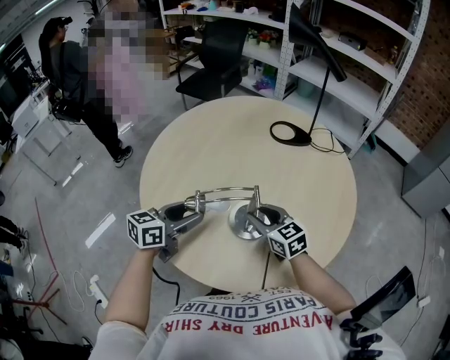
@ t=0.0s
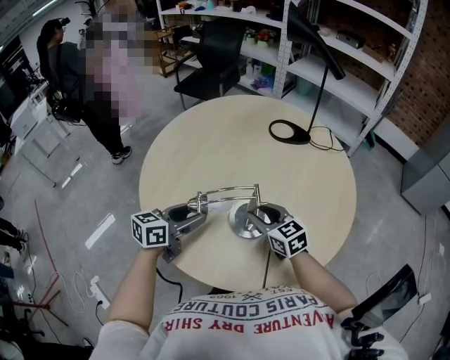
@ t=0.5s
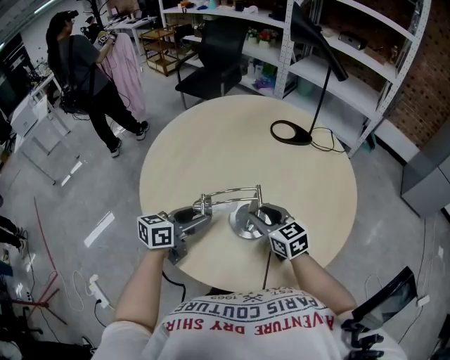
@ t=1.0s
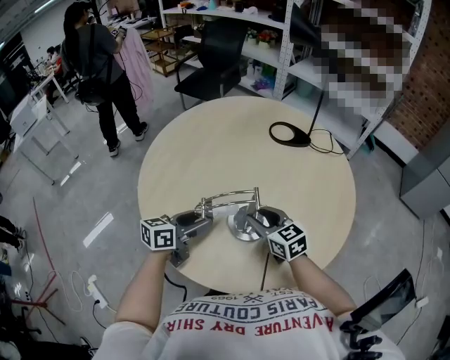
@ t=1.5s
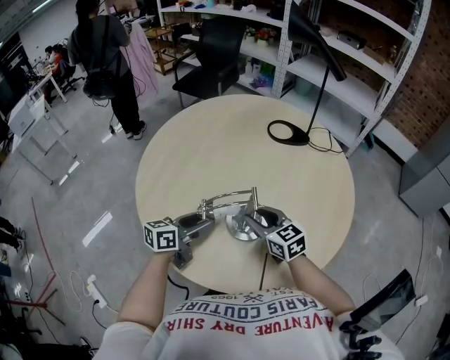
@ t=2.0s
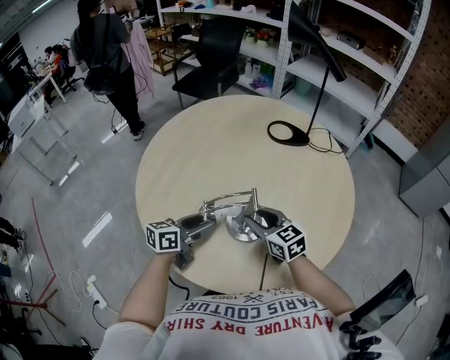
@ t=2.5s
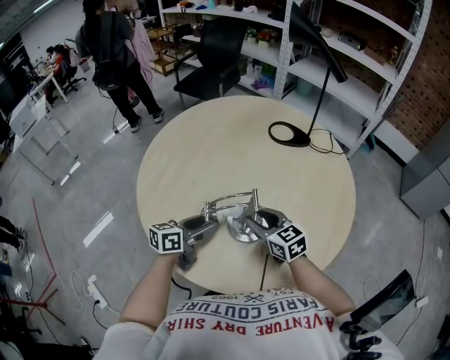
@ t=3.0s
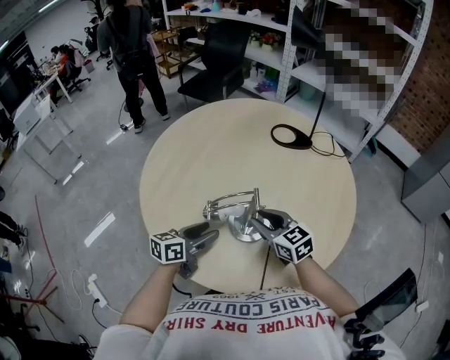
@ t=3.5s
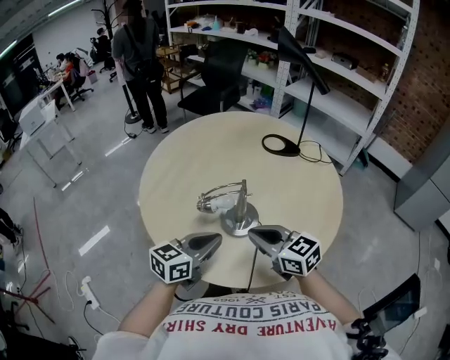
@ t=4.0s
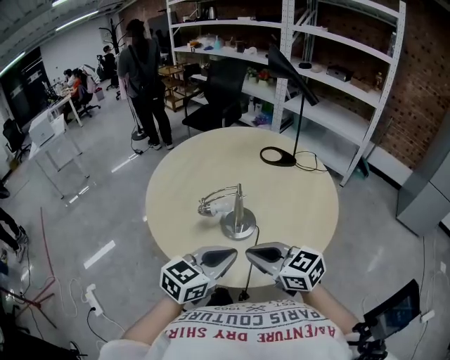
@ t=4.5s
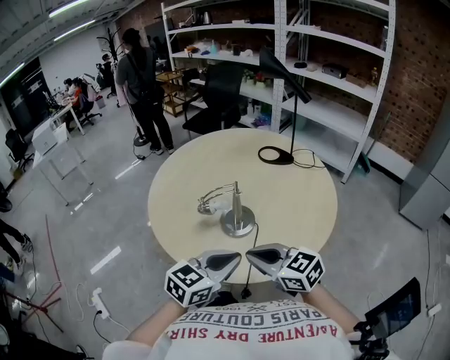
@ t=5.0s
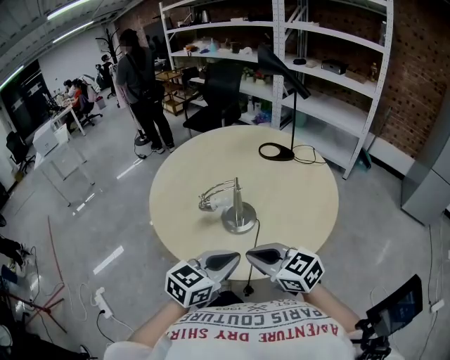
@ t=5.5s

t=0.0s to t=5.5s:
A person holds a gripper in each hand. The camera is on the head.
t=0.0s to t=2.0s: The left gripper is displaced downward by some 5 cm.
t=2.0s to t=3.5s: The grippers stay close to where they were, moving slightly.
t=3.5s to t=5.5s: The right gripper is displaced backward and upward by roughly 25 cm, and closes; the left gripper goes approximately 25 cm backward, upward and to the right, changes its angle by about 30 degrees, and closes up.

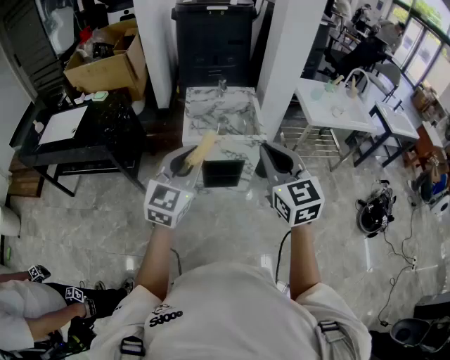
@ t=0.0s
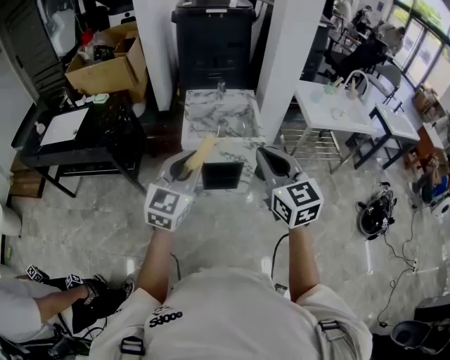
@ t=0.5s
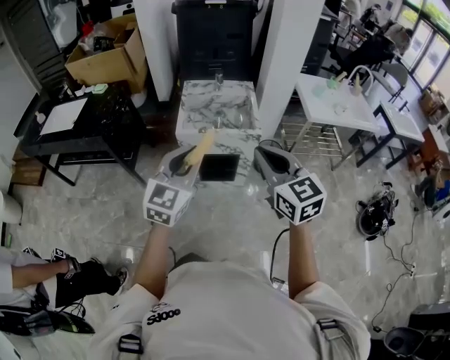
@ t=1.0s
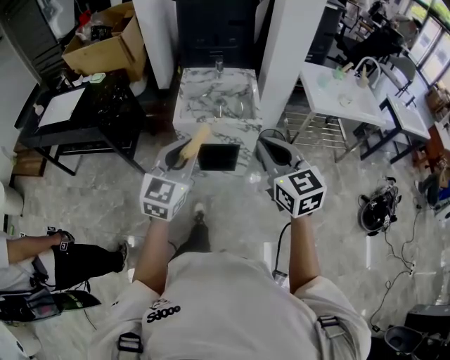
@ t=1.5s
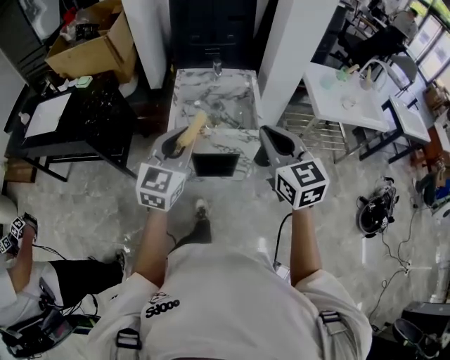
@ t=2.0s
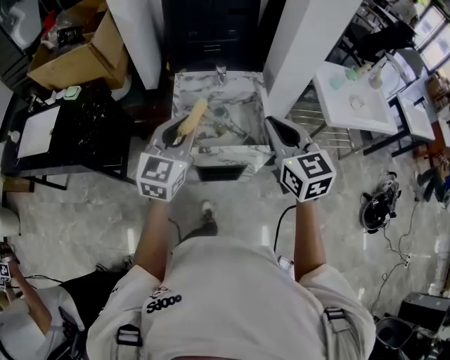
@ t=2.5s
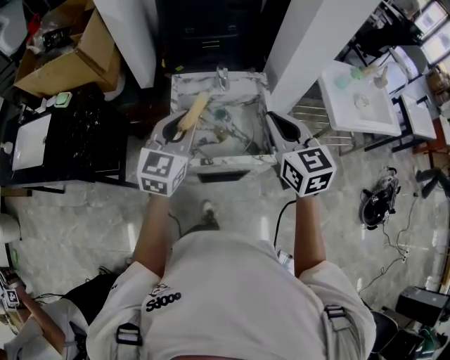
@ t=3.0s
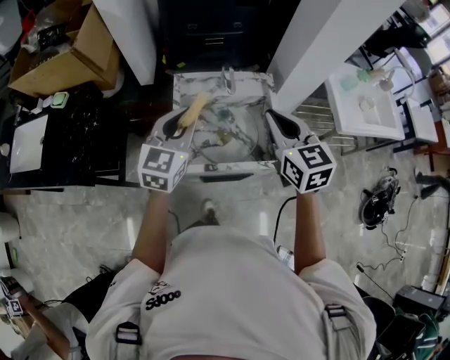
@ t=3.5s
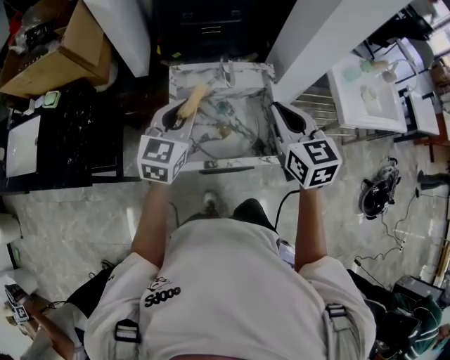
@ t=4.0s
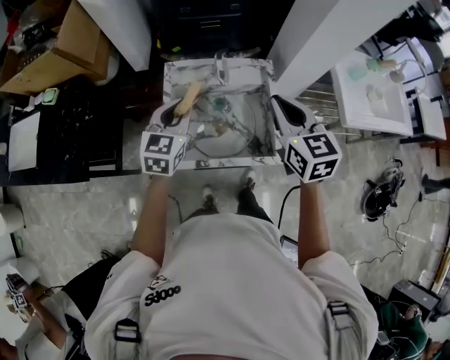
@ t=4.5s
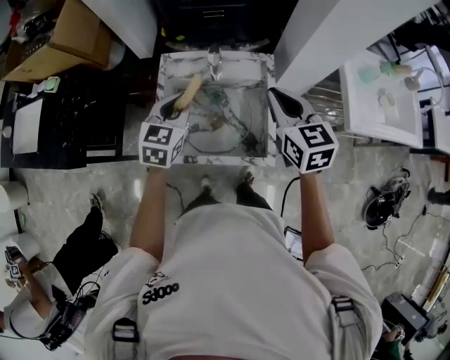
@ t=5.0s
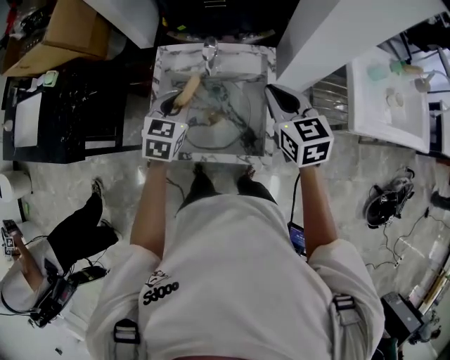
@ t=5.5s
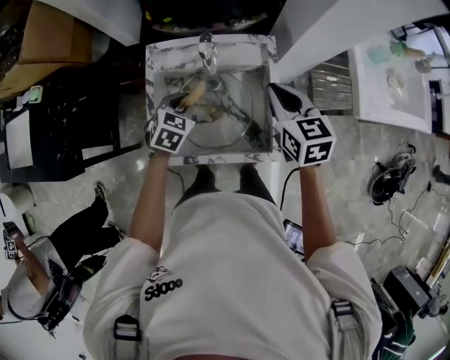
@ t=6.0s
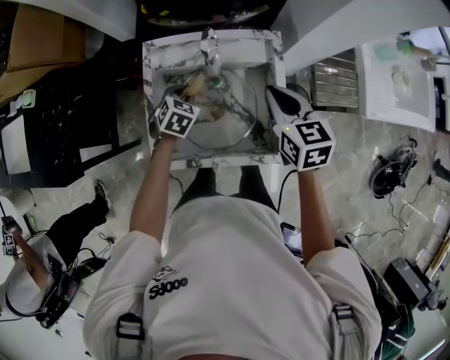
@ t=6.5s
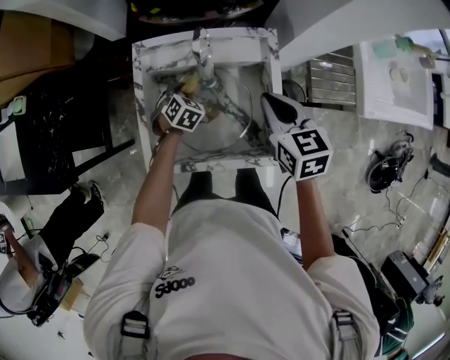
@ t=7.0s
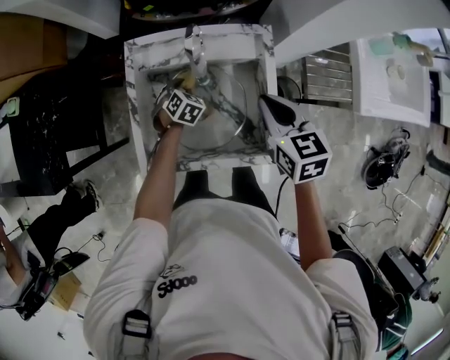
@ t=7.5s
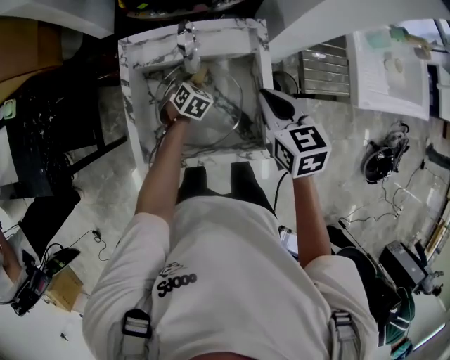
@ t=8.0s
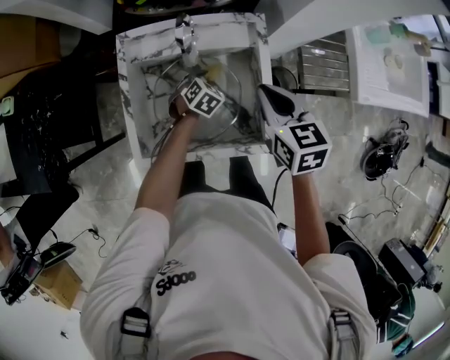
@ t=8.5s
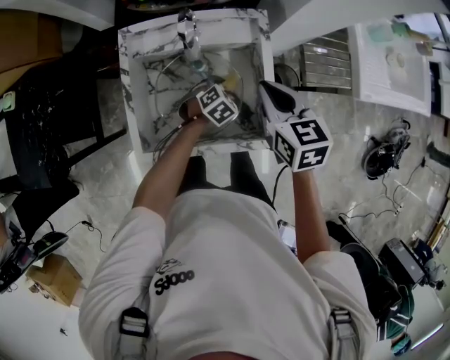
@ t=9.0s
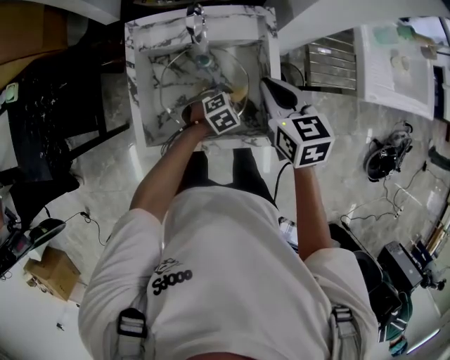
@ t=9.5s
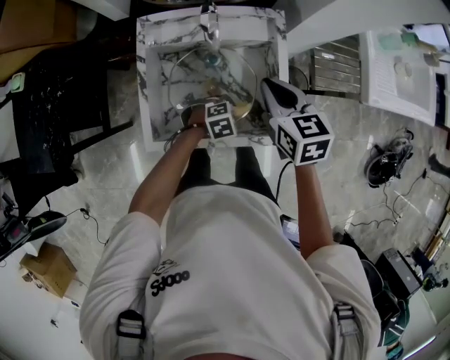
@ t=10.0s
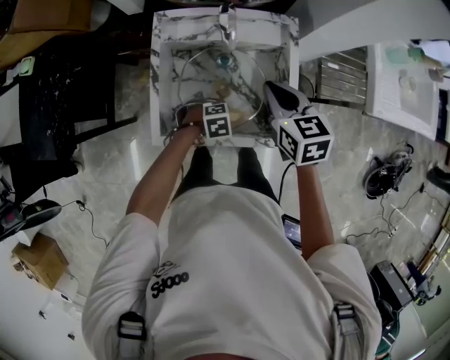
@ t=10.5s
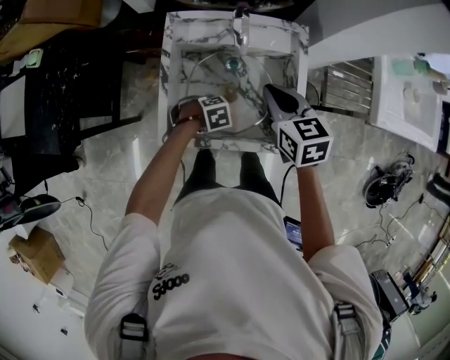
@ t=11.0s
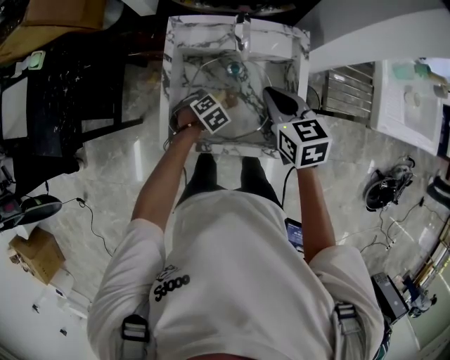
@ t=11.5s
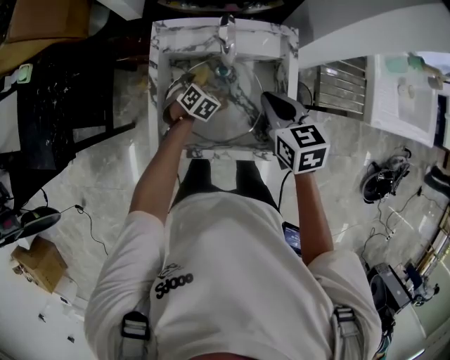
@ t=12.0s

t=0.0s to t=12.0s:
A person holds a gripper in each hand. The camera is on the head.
t=0.0s to t=2.0s: The two grippers go approximately 15 cm forward.
t=2.0s to t=4.0s: Both grippers move forward, some 30 cm.
t=4.0s to t=6.0s: The left gripper goes approximately 20 cm downward, and tilts its fingers some 40 degrees downward, while the right gripper moves downward, forward and to the right, approximately 20 cm.
t=6.0s to t=8.0s: The left gripper travels downward by about 15 cm. Meanwhile the right gripper shifts by about 5 cm.
t=8.0s to t=10.0s: The left gripper shifts by about 20 cm, and rotates some 40 degrees.
t=10.0s to t=12.0s: The left gripper shifts by some 25 cm, and changes its angle by approximately 50 degrees.

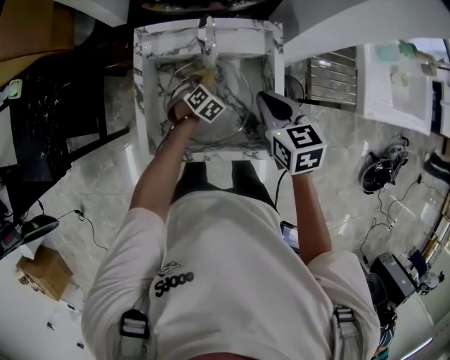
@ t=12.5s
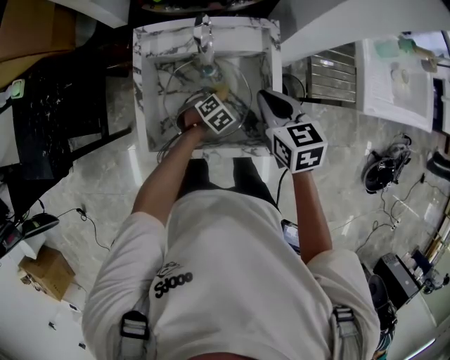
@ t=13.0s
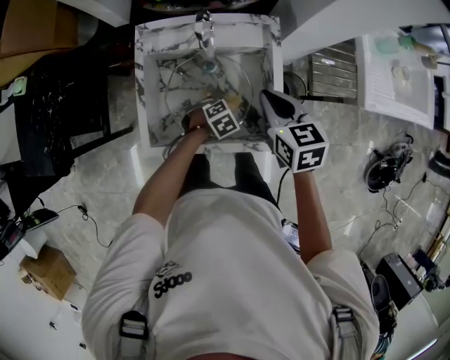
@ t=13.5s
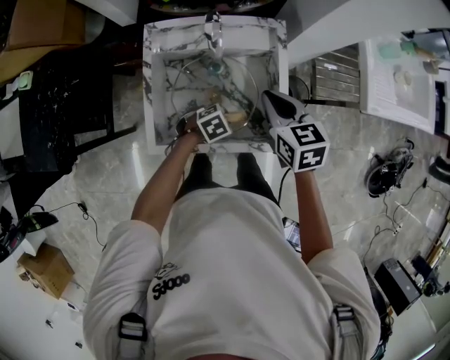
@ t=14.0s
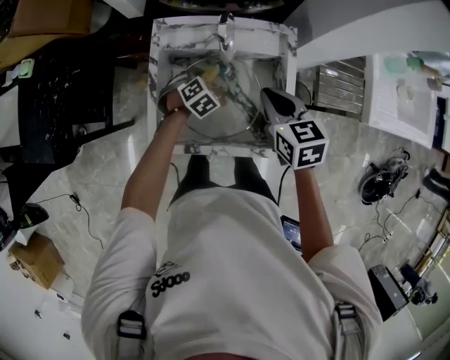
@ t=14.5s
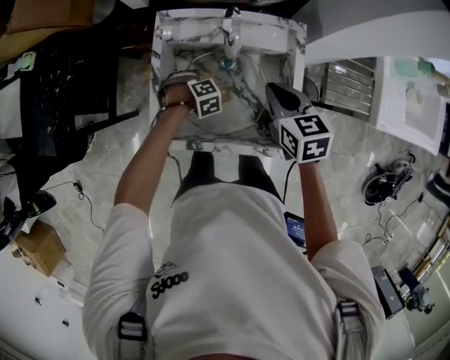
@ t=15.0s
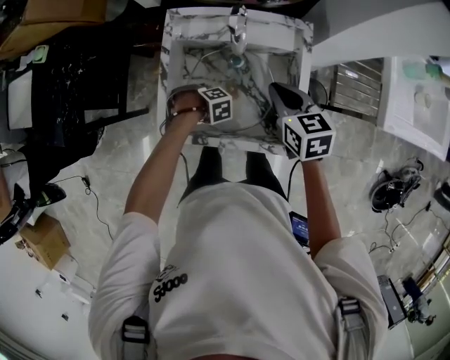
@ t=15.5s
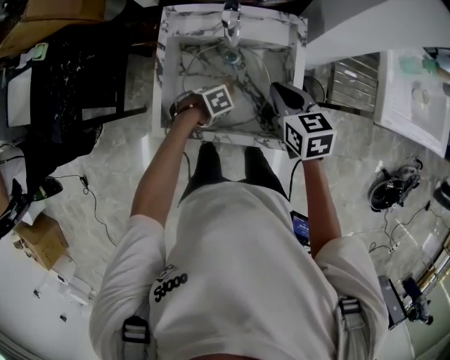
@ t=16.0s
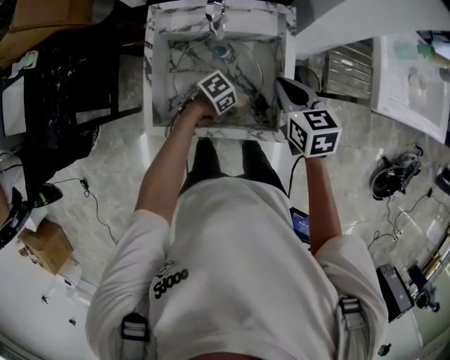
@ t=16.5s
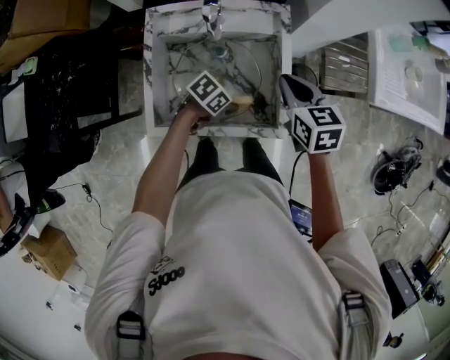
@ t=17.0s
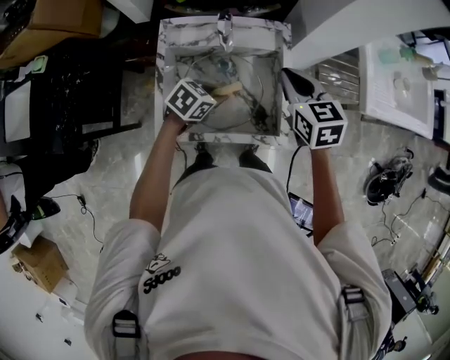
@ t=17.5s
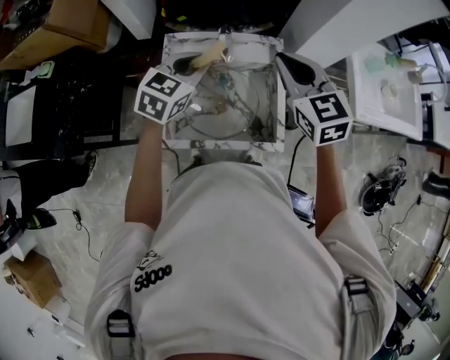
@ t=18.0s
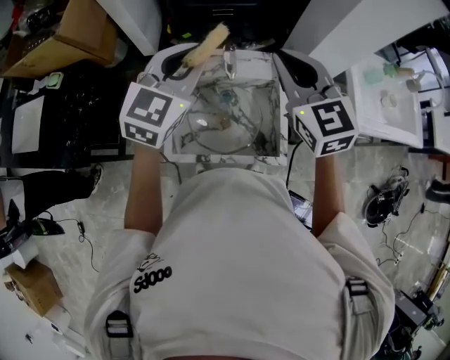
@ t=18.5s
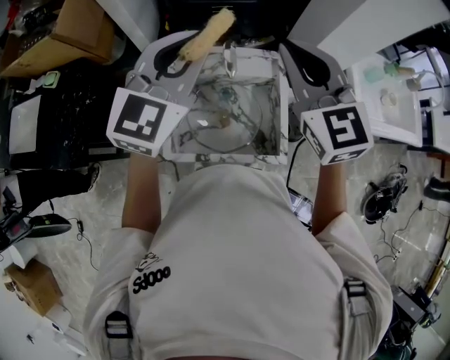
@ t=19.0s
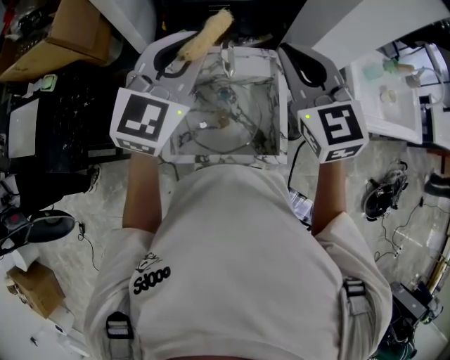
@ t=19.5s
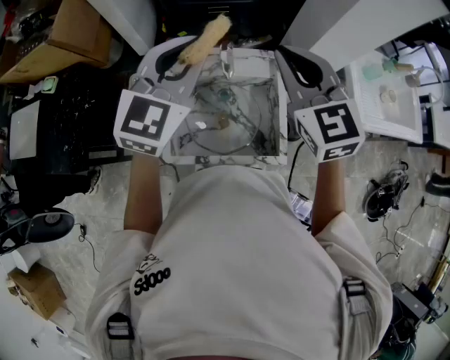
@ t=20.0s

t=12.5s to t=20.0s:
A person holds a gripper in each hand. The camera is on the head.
t=14.5s to t=16.5s: The left gripper moves some 20 cm, and changes its angle by about 60 degrees, while the right gripper ends up some 5 cm from where it was.
t=16.5s to t=18.0s: The right gripper heads upward, covering approximately 20 cm, and changes its angle by roughly 30 degrees. The left gripper shifts some 30 cm upward, and turns by roughly 70 degrees.
t=18.0s to t=20.0s: The left gripper goes some 15 cm upward, and changes its angle by approximately 30 degrees. Meanwhile the right gripper travels upward by roughly 10 cm.

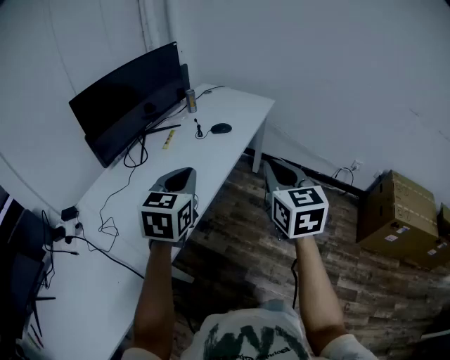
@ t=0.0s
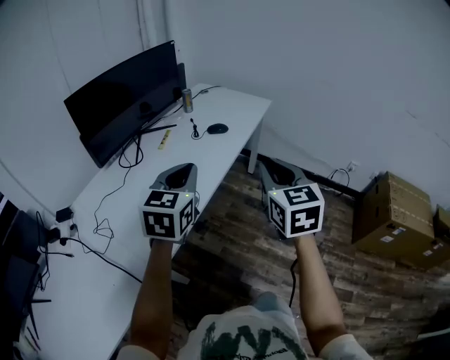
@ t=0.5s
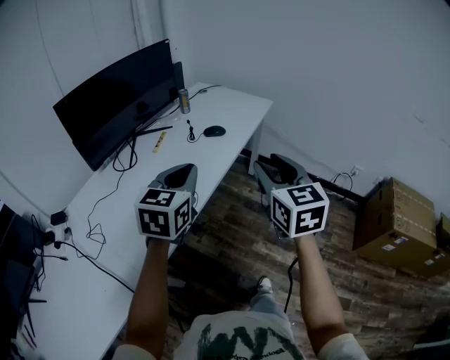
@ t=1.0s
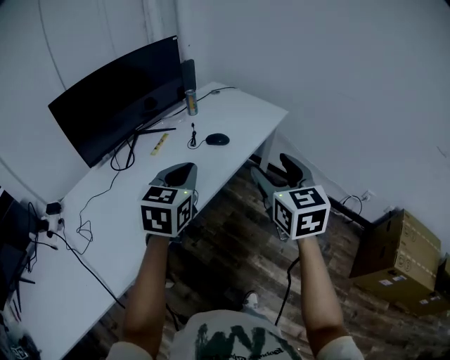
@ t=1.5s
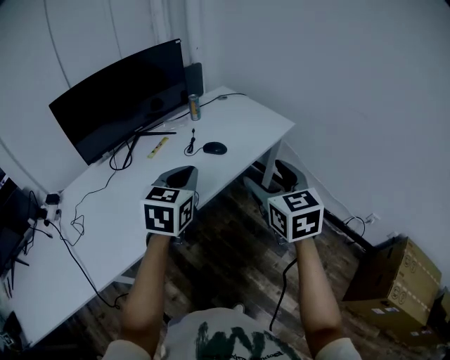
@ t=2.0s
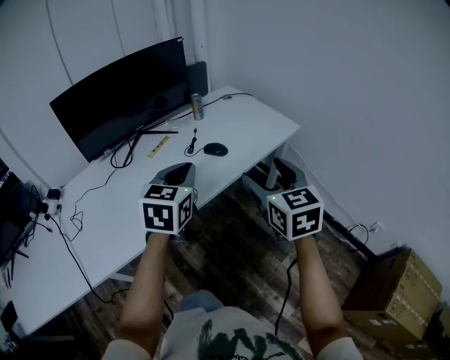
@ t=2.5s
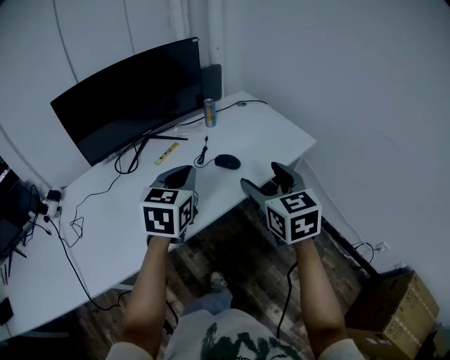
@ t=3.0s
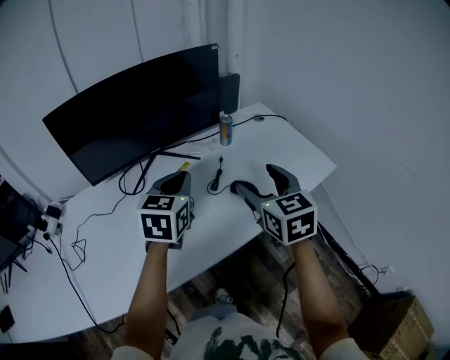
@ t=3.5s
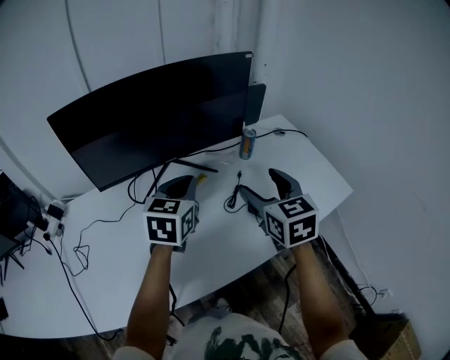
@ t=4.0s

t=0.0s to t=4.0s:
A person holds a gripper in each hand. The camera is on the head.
t=0.0s to t=2.0s: Both grippers travel together forward and to the right, about 25 cm. The right gripper rotates approximately 20 degrees, and opens its fingers.
t=2.0s to t=4.0s: Both grippers travel together forward and to the left, some 35 cm.
